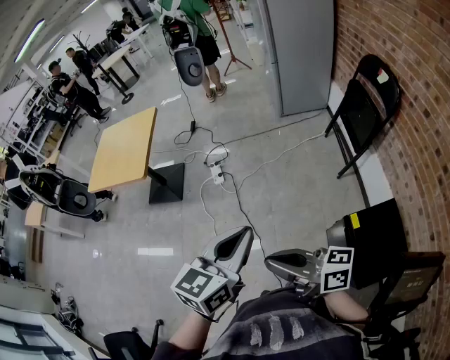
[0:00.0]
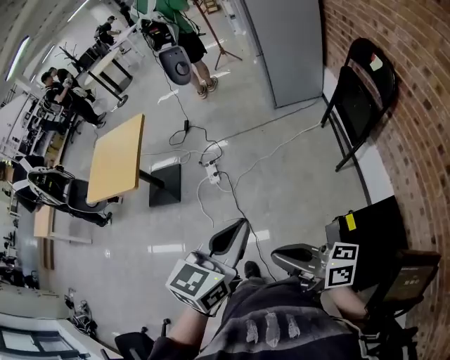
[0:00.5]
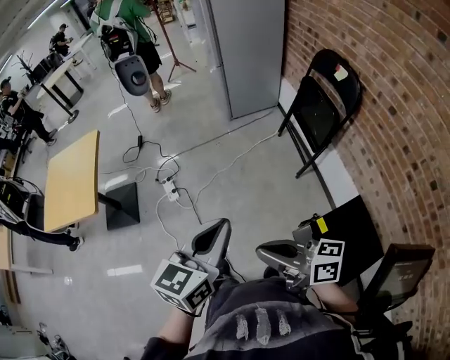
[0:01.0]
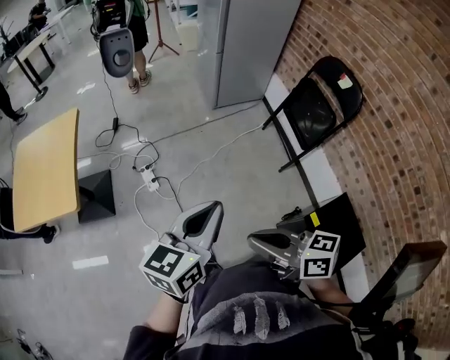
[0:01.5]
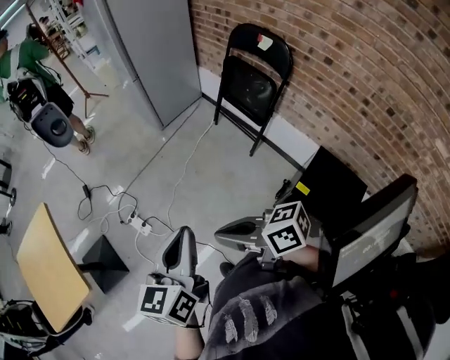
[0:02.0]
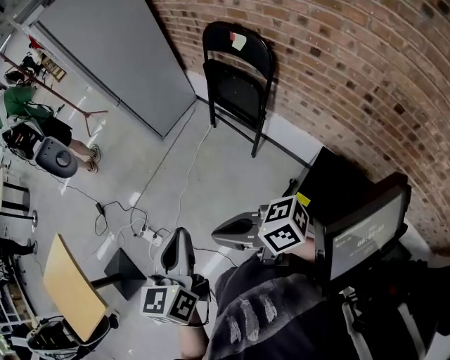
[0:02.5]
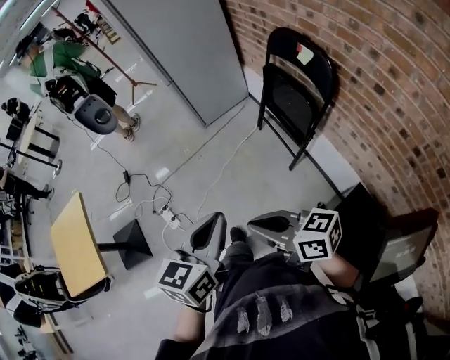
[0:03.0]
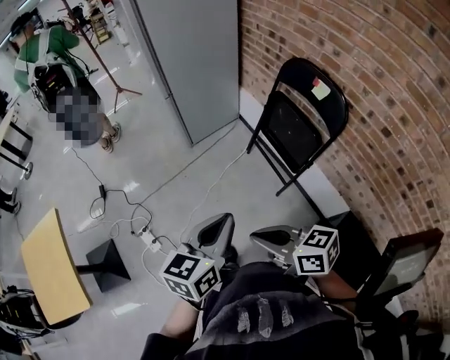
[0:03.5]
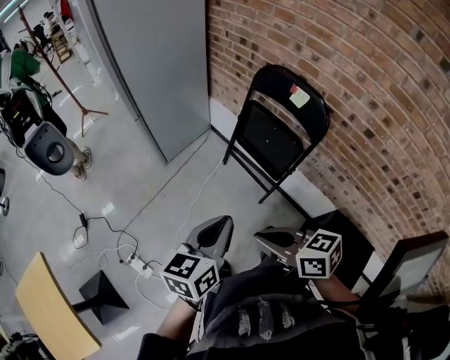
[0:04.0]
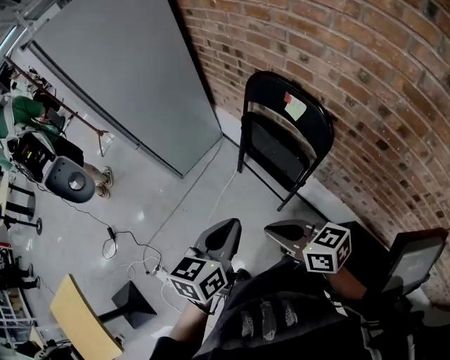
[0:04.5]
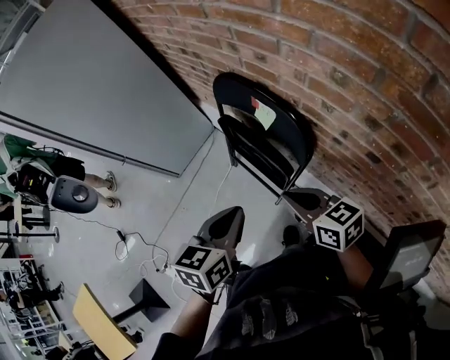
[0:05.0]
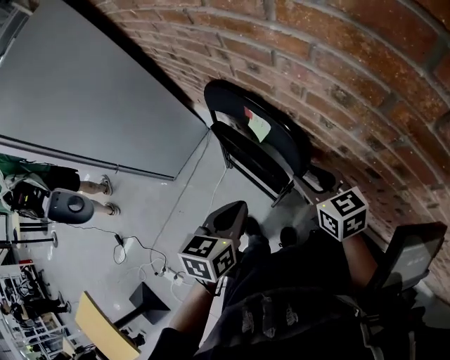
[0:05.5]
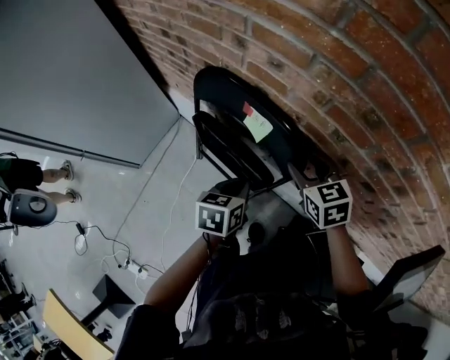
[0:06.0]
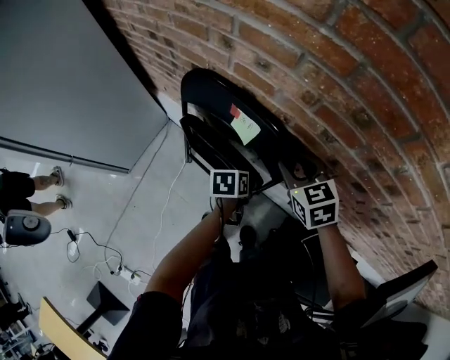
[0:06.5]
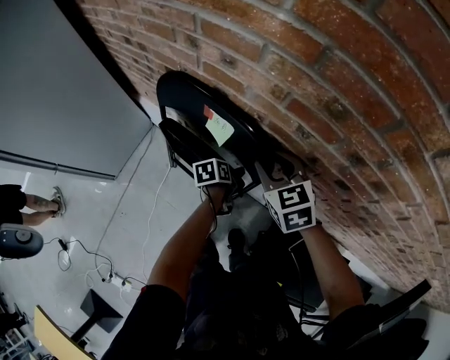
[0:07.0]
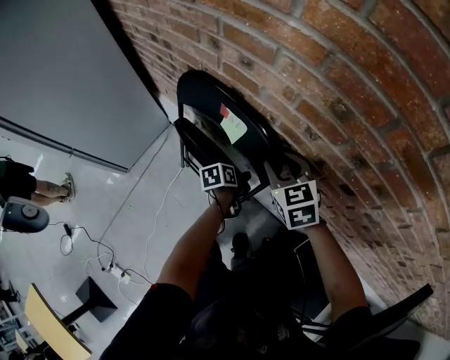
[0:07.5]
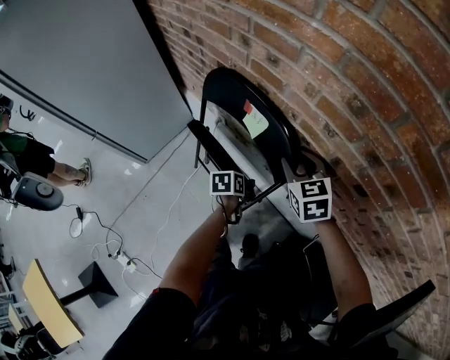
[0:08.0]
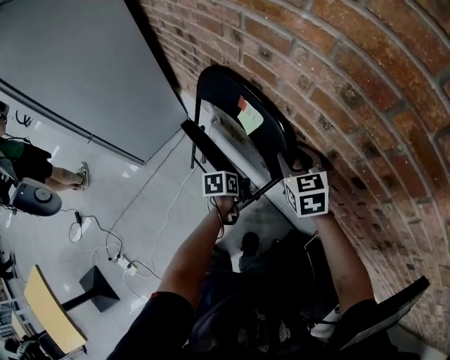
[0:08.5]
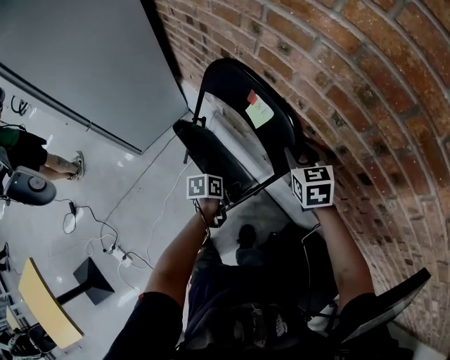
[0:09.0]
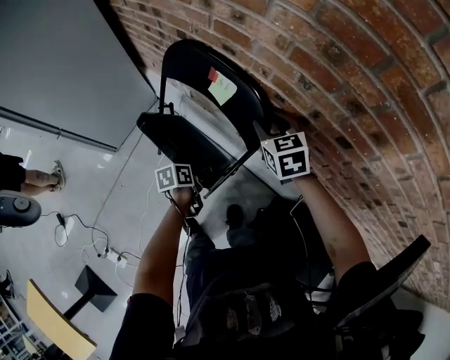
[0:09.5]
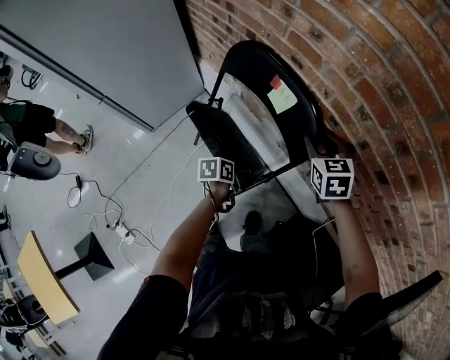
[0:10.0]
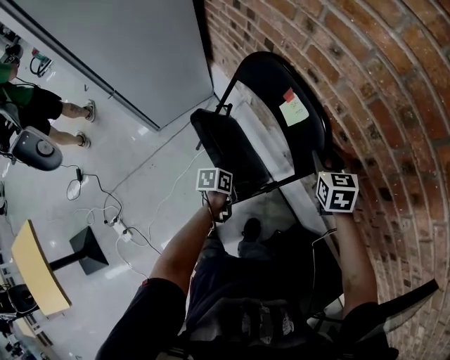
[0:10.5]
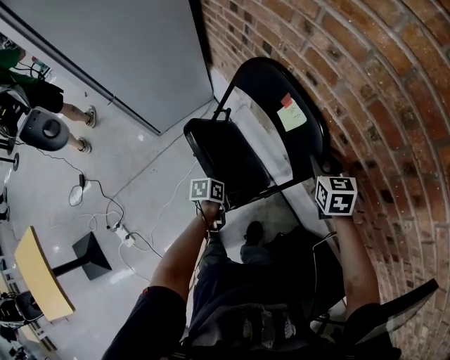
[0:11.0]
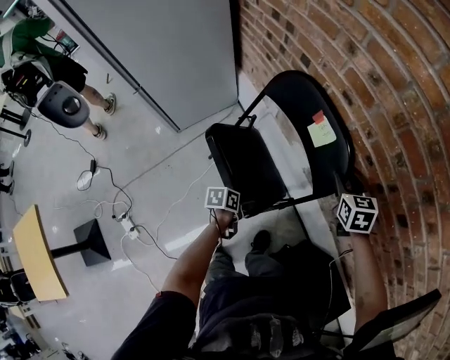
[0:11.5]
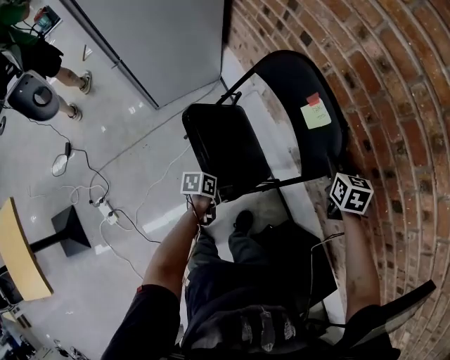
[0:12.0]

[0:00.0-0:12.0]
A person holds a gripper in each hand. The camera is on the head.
0:00.0 to 0:02.0: Both grippers move forward, approximately 25 cm. The right gripper swivels roughly 30 degrees.
0:02.0 to 0:04.0: Both grippers move forward and to the right, roughly 35 cm. The left gripper changes its angle by about 20 degrees, while the right gripper swivels approximately 20 degrees.
0:04.0 to 0:06.0: The pair of grippers is taken some 50 cm. The right gripper rotates some 50 degrees, and opens up, while the left gripper changes its angle by roughly 30 degrees.
0:06.0 to 0:08.0: The left gripper heads downward, covering approximately 15 cm, turns by approximately 30 degrees, and opens.
0:08.0 to 0:10.0: The left gripper heads backward, covering approximately 10 cm.
0:10.0 to 0:12.0: The right gripper shifts roughly 5 cm downward. Meanwhile the left gripper heads backward, downward and to the left, covering roughly 15 cm.

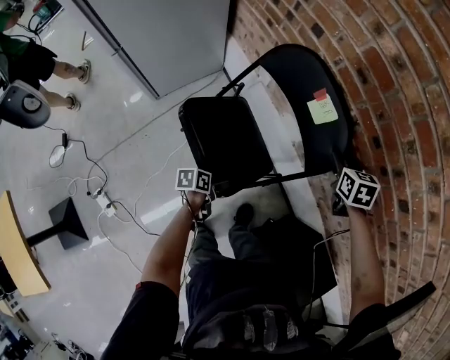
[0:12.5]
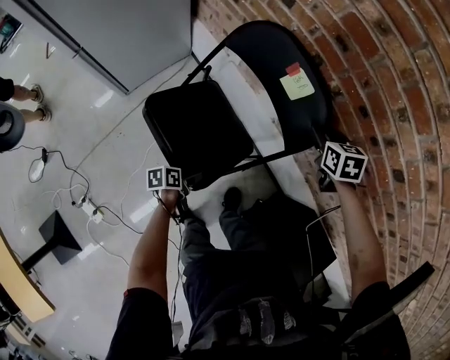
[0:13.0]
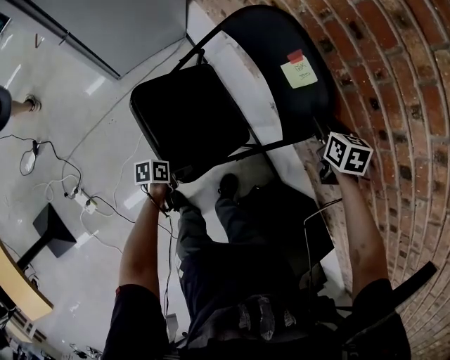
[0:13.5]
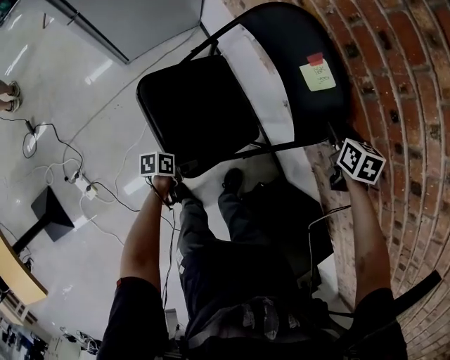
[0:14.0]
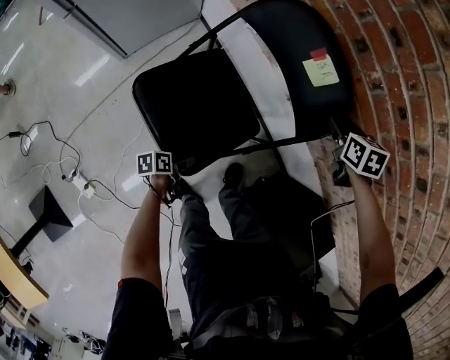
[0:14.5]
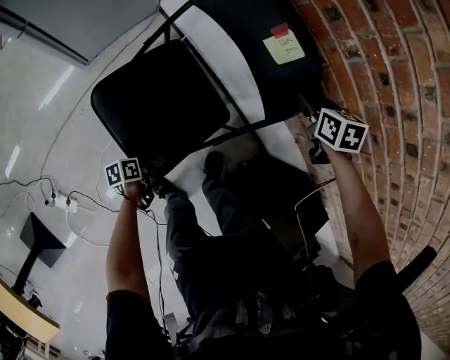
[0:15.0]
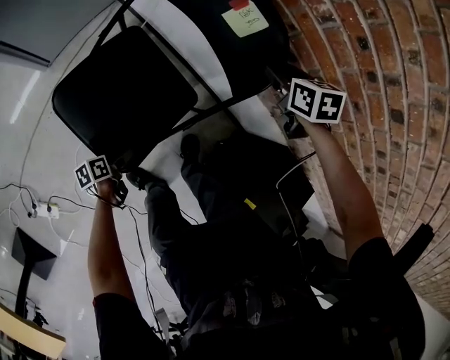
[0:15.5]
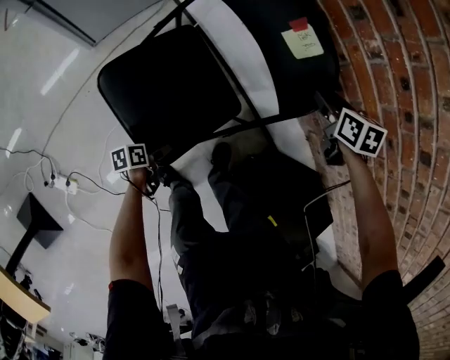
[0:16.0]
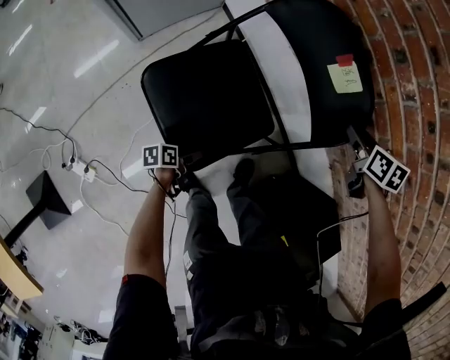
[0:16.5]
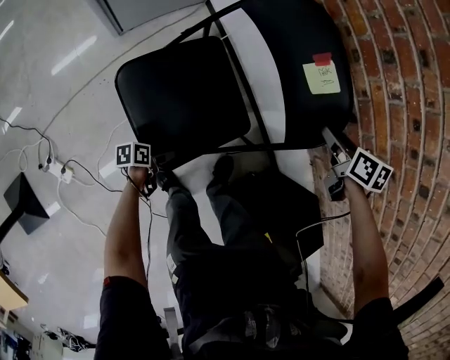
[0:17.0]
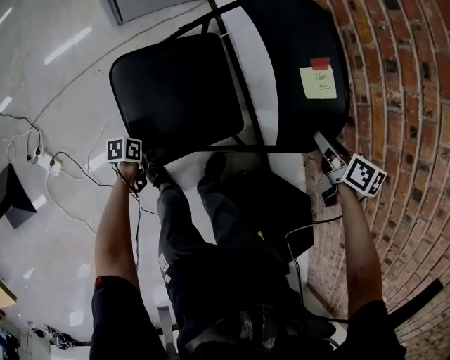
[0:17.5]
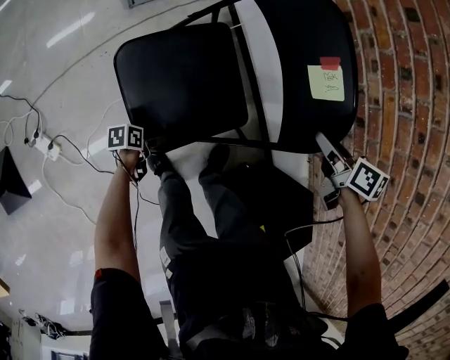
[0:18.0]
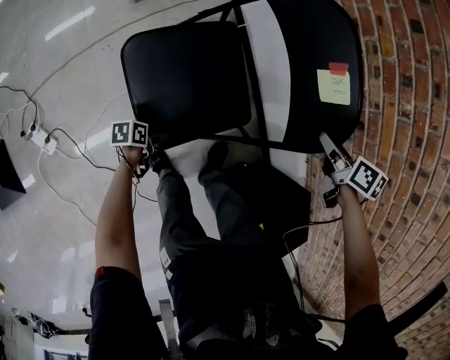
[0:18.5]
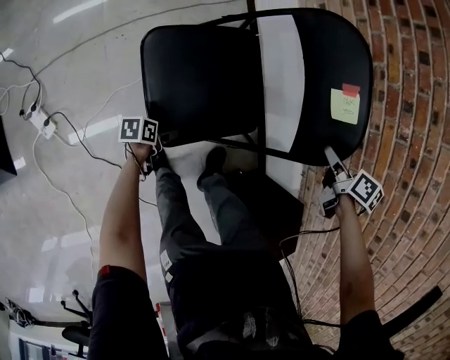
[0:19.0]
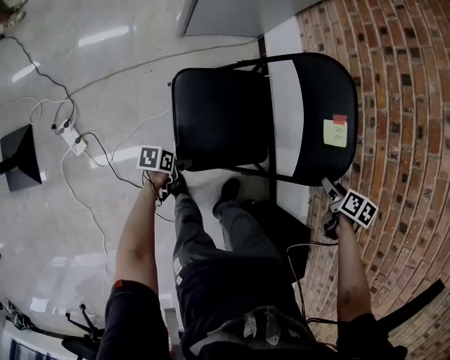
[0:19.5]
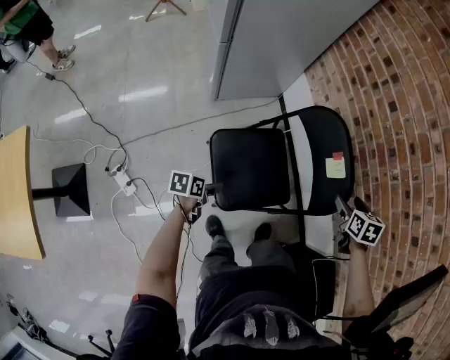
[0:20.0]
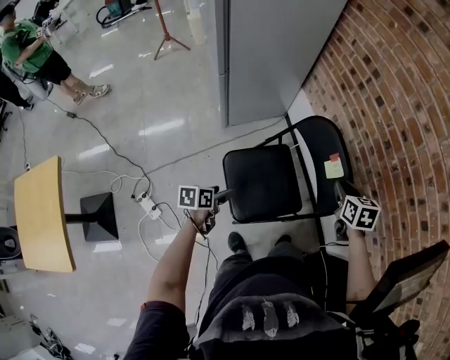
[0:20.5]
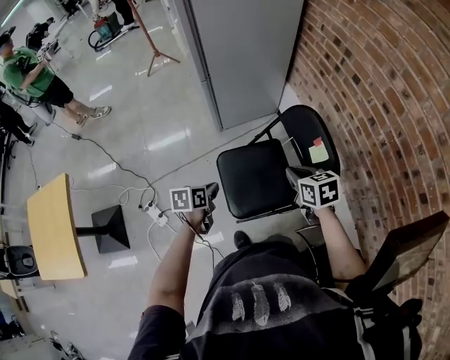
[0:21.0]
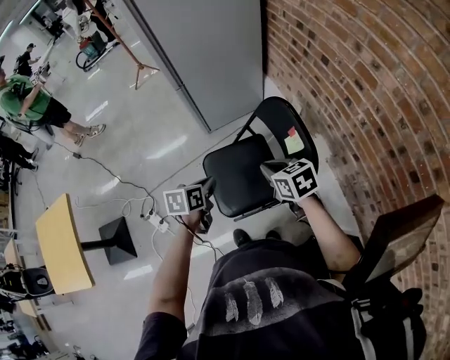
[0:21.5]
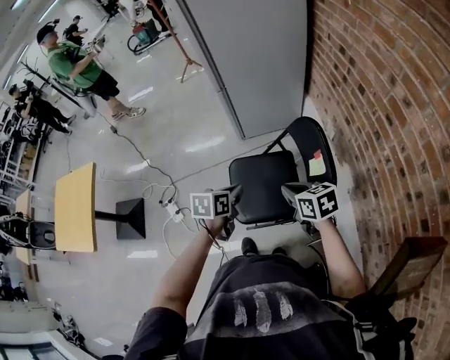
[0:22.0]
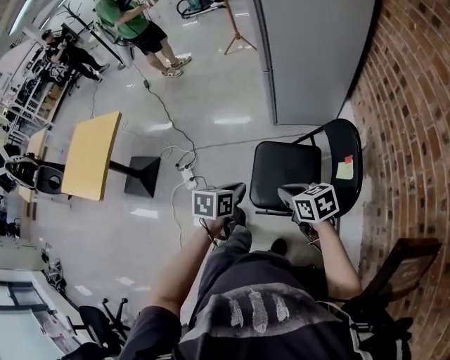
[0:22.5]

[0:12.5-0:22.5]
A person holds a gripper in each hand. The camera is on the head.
0:12.5 to 0:14.5: The left gripper heads downward and backward, covering about 15 cm. The right gripper shifts some 5 cm downward.
0:14.5 to 0:16.5: The left gripper shifts by about 5 cm.
0:16.5 to 0:18.5: The right gripper travels backward and to the left by approximately 15 cm. The left gripper moves backward, downward and to the left, about 10 cm.
0:18.5 to 0:20.5: The left gripper goes some 35 cm upward, turns by approximately 30 degrees, and closes its fingers, while the right gripper travels upward and to the left by about 20 cm, swivels approximately 30 degrees, and opens and closes again.
0:20.5 to 0:22.5: The right gripper ends up some 20 cm from where it was, and changes its angle by about 60 degrees. The left gripper shifts some 15 cm upward, swivels some 30 degrees, and closes.

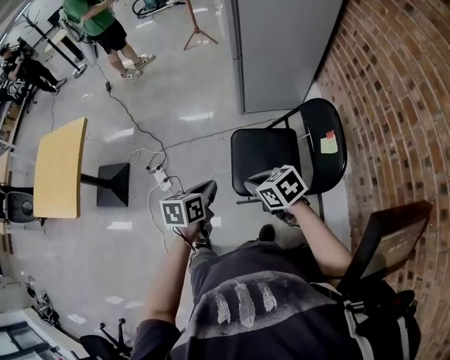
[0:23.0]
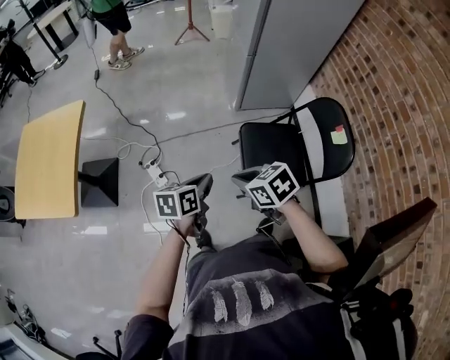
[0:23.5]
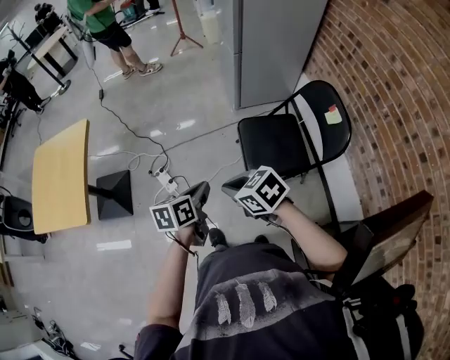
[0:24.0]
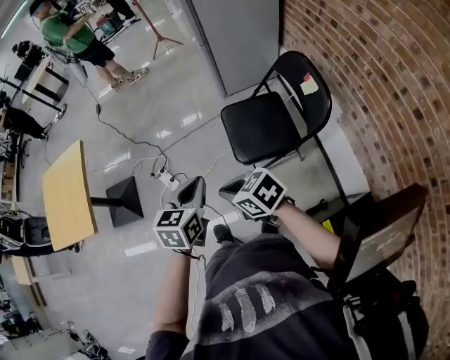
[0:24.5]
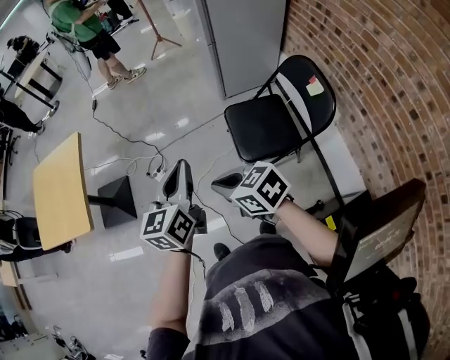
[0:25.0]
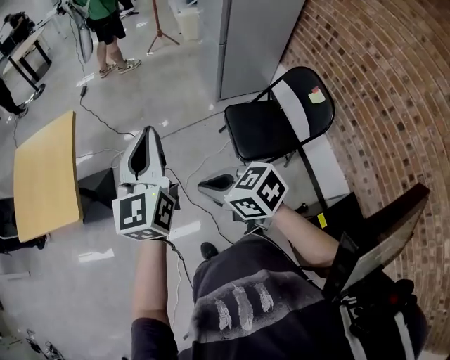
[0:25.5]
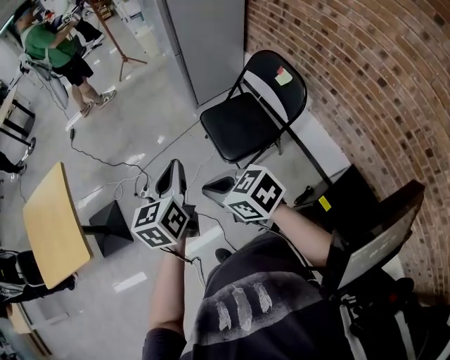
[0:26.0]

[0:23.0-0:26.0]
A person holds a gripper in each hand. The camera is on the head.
0:23.0 to 0:24.5: The right gripper moves to the left and backward, roughly 20 cm. Meanwhile the left gripper travels backward, upward and to the left by roughly 15 cm, and turns by roughly 20 degrees.
0:24.5 to 0:26.0: Both grippers move to the left and upward, about 10 cm.

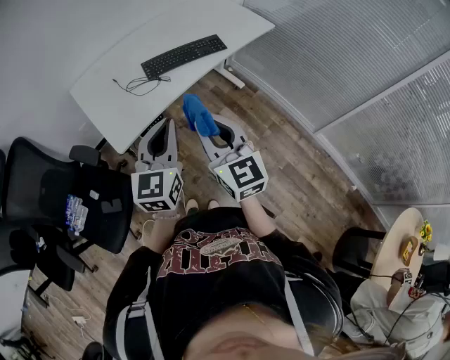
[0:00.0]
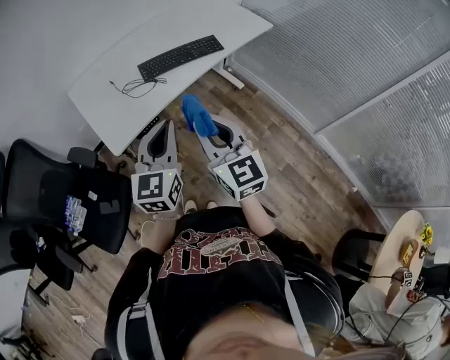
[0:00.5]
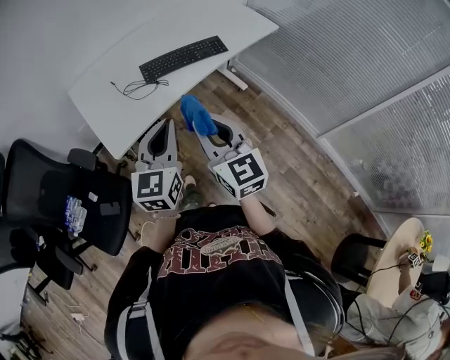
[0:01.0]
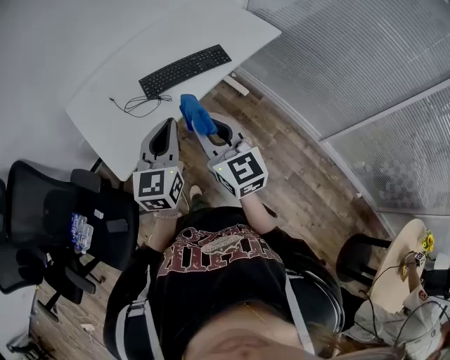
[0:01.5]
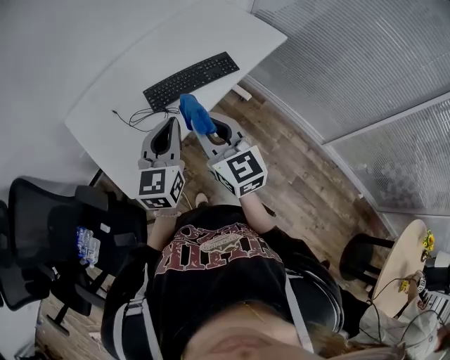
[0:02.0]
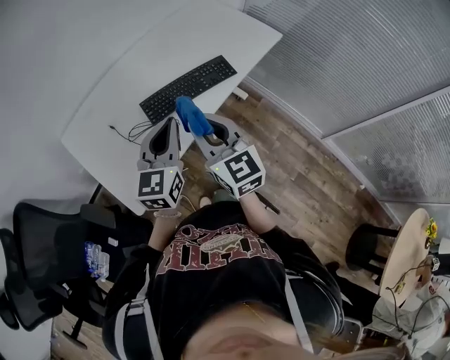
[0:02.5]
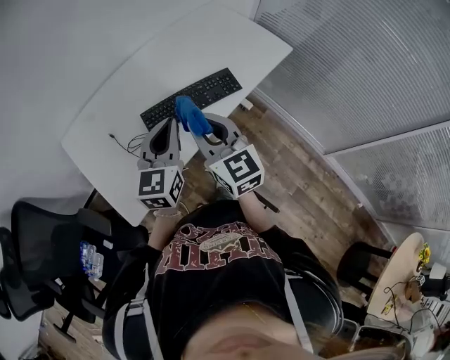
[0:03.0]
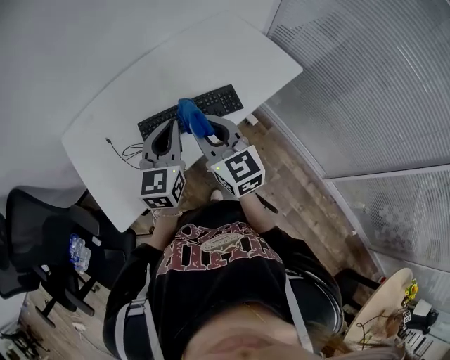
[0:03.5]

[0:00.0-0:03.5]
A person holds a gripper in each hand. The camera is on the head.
0:00.0 to 0:02.0: The two grippers go about 20 cm forward.
0:02.0 to 0:03.5: The left gripper moves forward and to the right, approximately 20 cm. The right gripper shifts some 20 cm forward.
